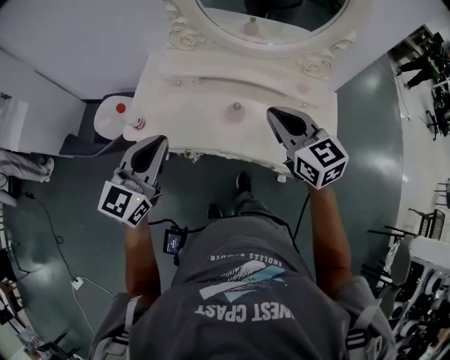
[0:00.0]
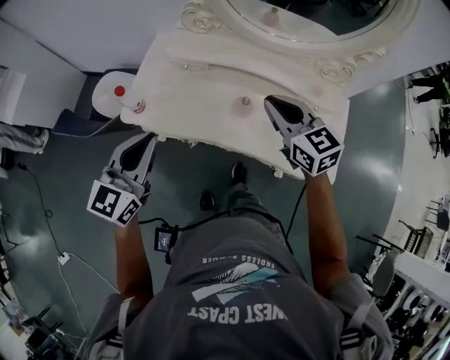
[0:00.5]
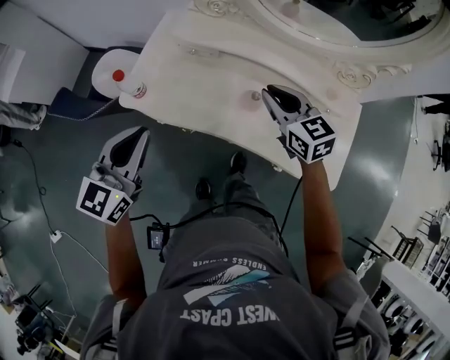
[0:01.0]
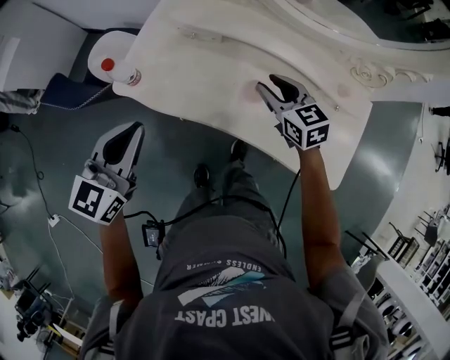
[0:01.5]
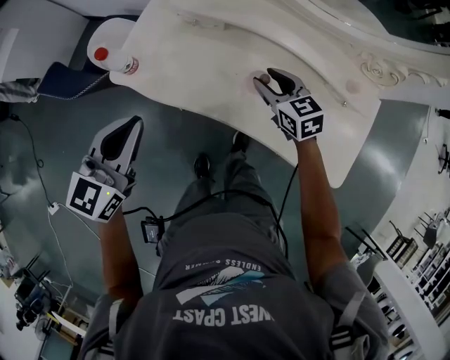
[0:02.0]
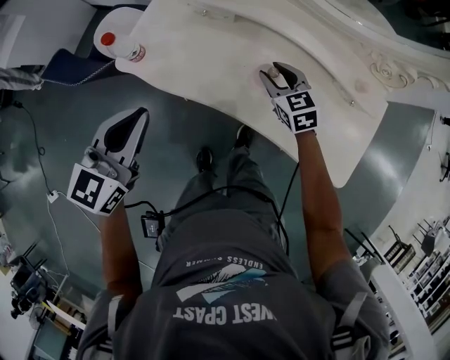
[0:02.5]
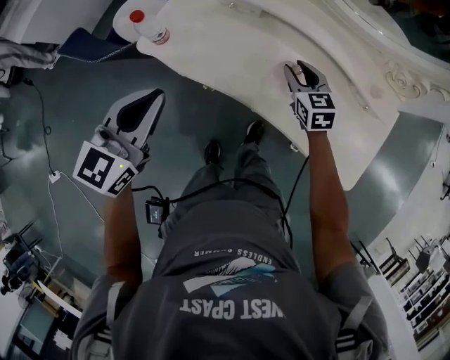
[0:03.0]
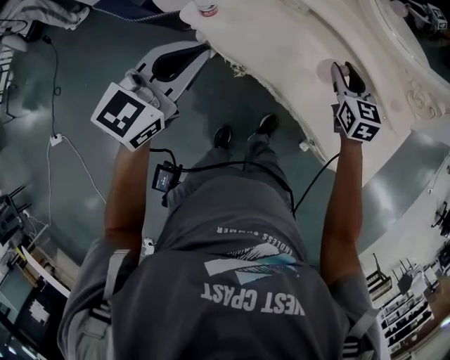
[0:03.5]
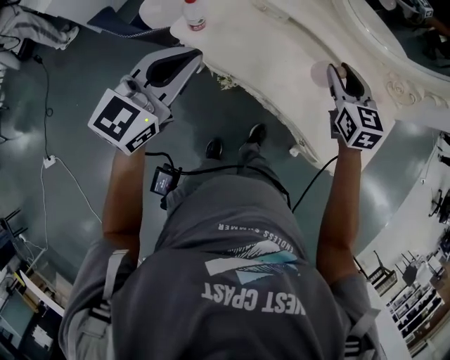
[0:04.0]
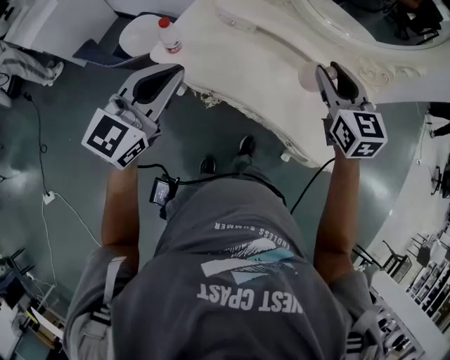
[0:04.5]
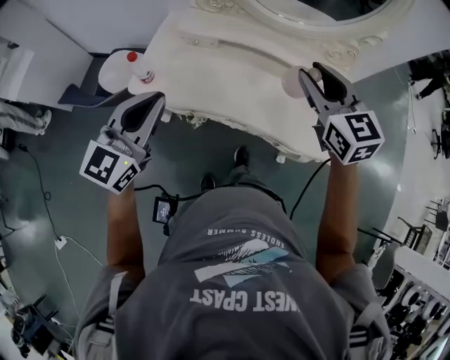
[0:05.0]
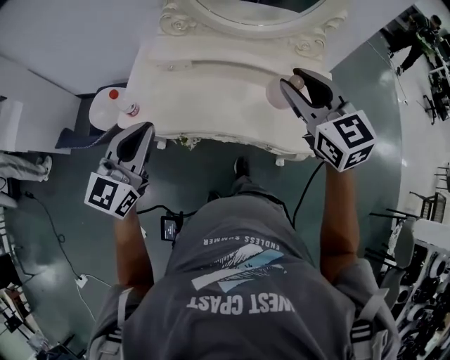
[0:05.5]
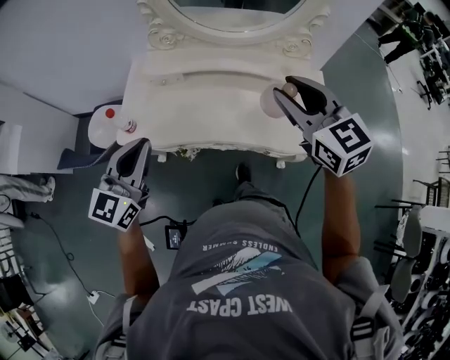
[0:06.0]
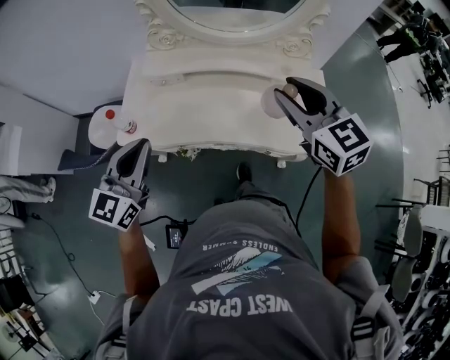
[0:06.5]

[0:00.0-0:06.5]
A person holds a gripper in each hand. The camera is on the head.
0:00.0 to 0:02.0: The right gripper goes approximately 30 cm downward and forward, swivels about 20 degrees, and opens its fingers. The left gripper is displaced downward by roughly 10 cm.
0:02.0 to 0:04.5: The right gripper heads upward, covering approximately 25 cm, and changes its angle by roughly 20 degrees; the left gripper shifts about 10 cm upward.
0:04.5 to 0:06.5: The right gripper travels upward, backward and to the right by some 15 cm.

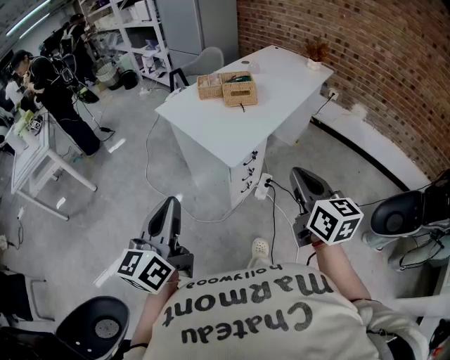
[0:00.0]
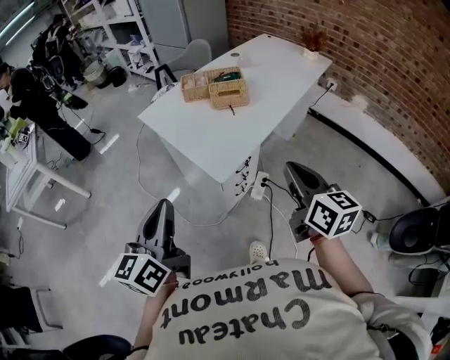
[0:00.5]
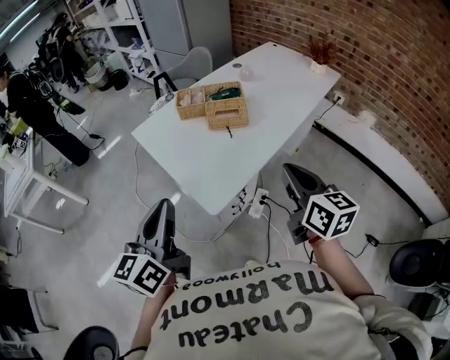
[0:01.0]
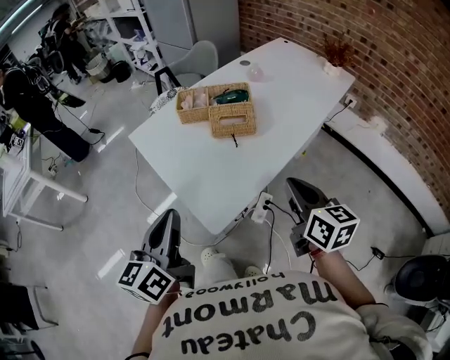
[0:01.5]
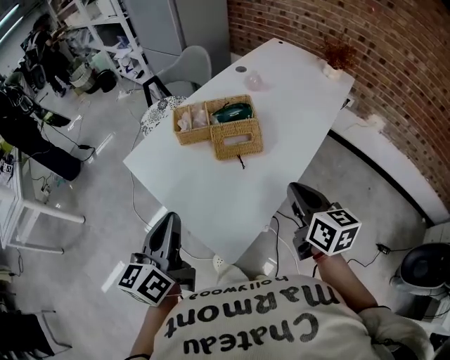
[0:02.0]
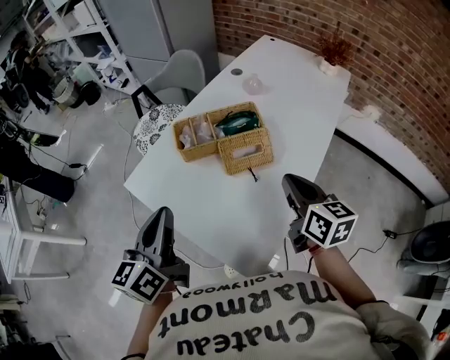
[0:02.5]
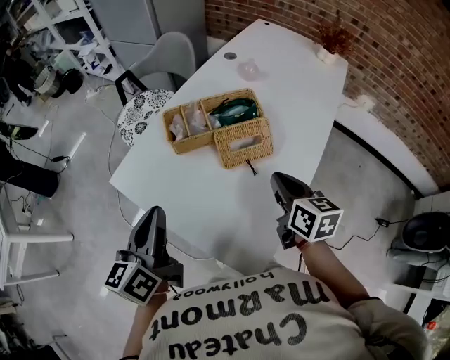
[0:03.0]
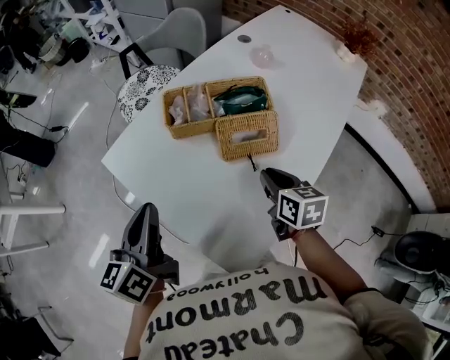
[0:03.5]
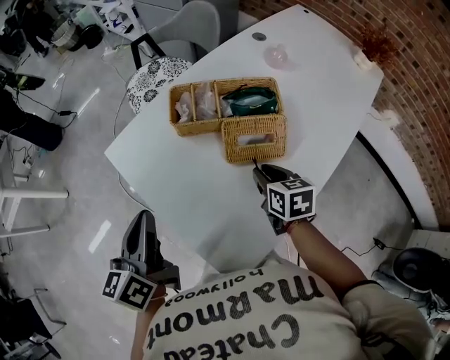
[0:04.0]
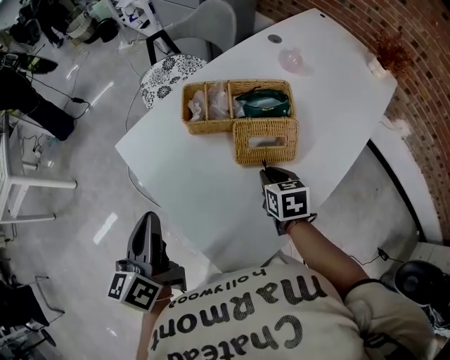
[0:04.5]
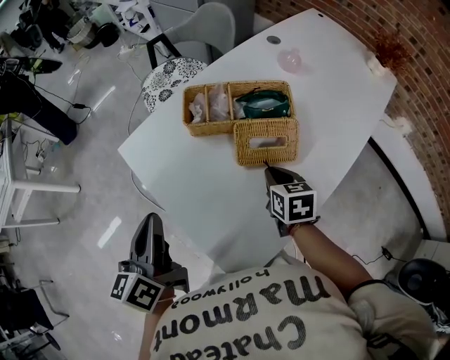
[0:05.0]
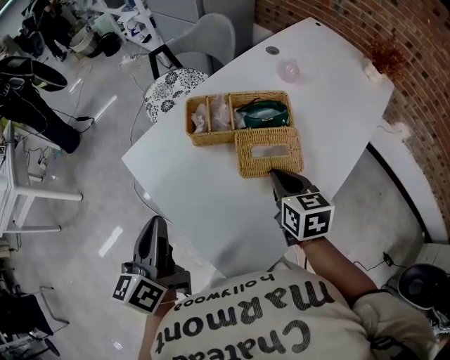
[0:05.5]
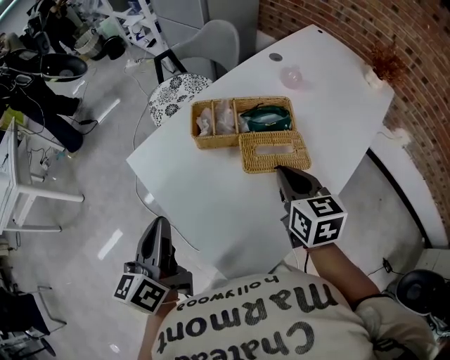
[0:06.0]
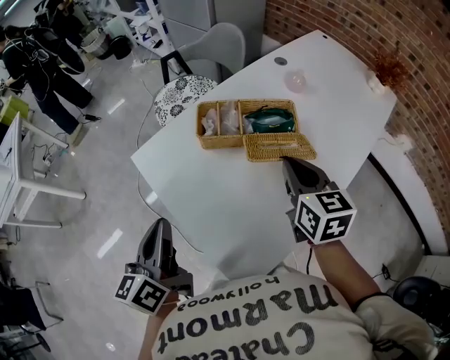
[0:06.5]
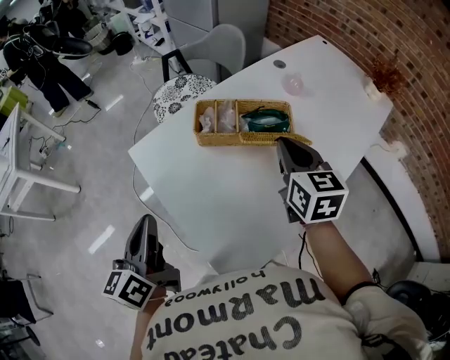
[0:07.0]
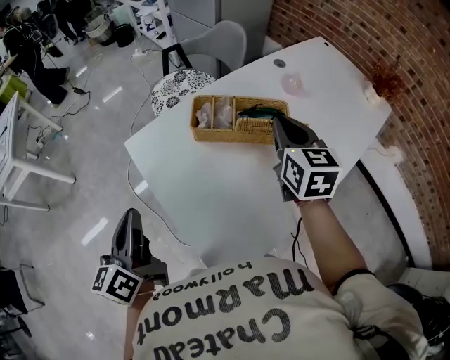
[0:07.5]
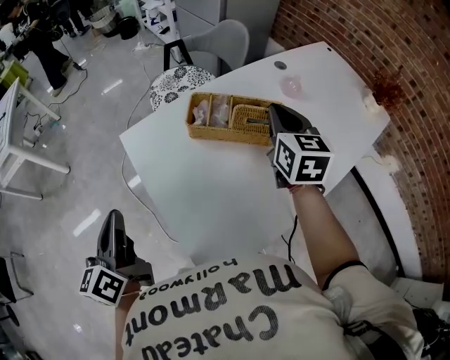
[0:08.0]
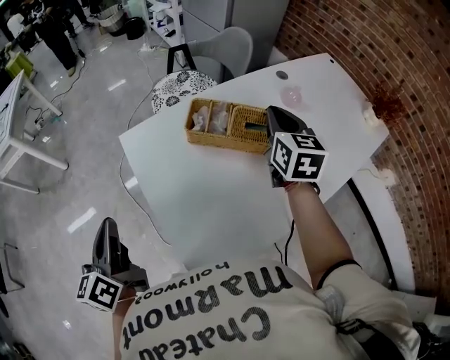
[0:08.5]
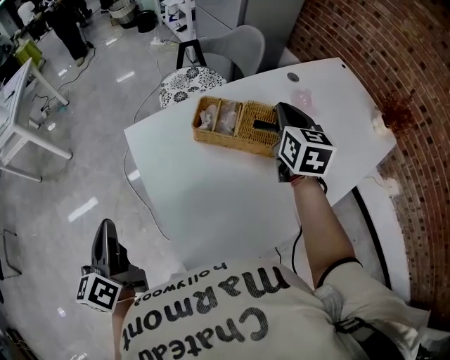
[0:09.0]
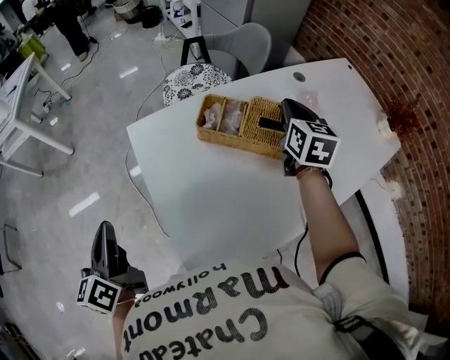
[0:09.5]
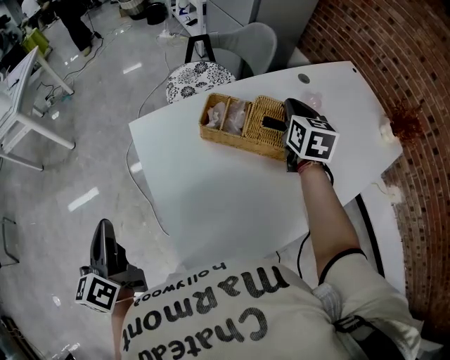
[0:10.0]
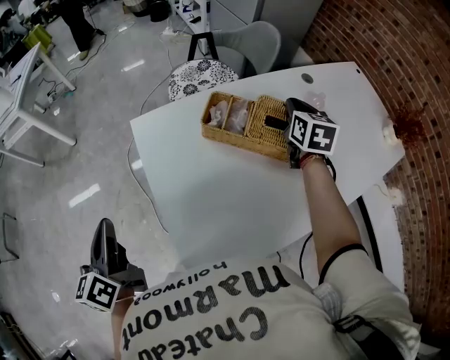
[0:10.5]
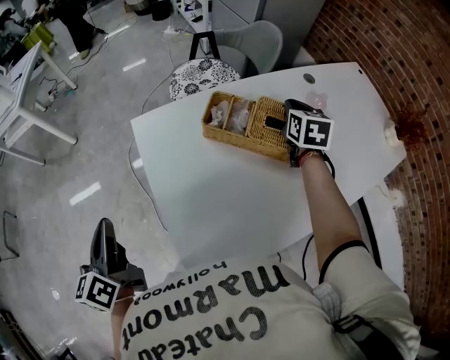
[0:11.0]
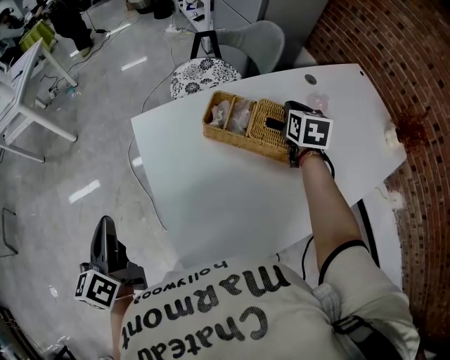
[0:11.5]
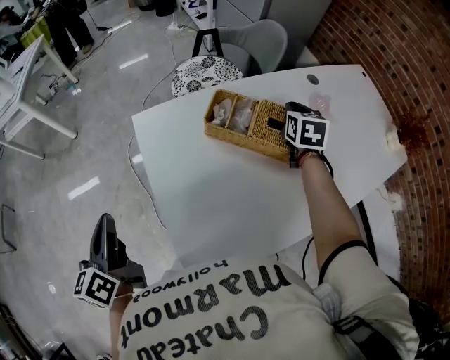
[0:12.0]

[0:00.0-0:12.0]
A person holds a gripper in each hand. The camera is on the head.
0:00.0 to 0:02.0: Both grippers are carried forward, roughly 40 cm.
0:02.0 to 0:04.0: The left gripper goes approximately 15 cm forward, to the left and downward, while the right gripper is displaced downward, forward and to the left by roughly 25 cm, swivels approximately 30 degrees, and opens its fingers.
0:04.0 to 0:06.0: The right gripper is displaced upward by roughly 10 cm.
0:06.0 to 0:08.0: The left gripper heads to the left, covering approximately 5 cm. The right gripper shifts approximately 15 cm forward and upward.
0:08.0 to 0:10.0: The left gripper changes place by roughly 5 cm. Meanwhile the right gripper heads forward, covering about 10 cm.
0:10.0 to 0:12.0: The right gripper shifts roughly 5 cm downward.

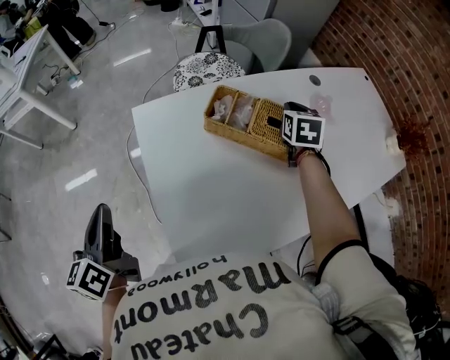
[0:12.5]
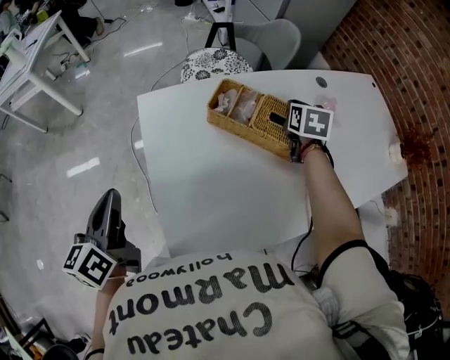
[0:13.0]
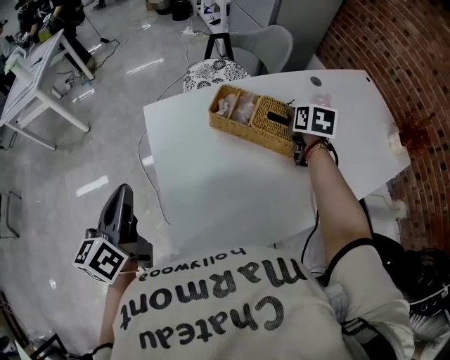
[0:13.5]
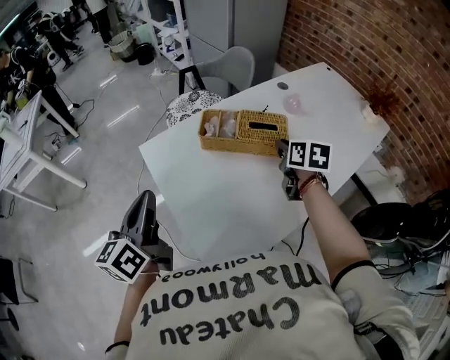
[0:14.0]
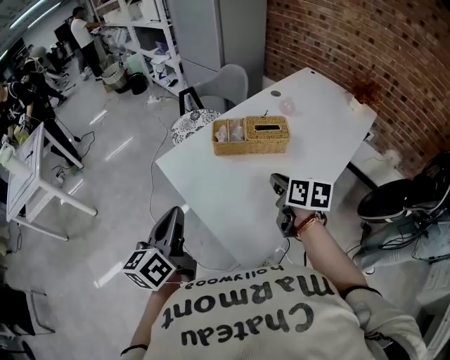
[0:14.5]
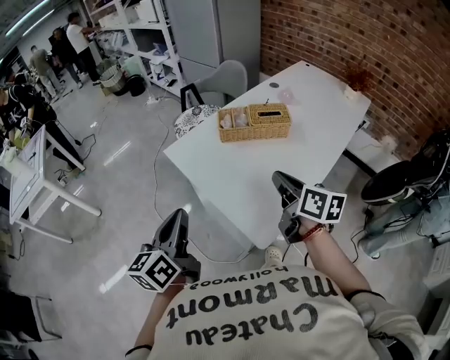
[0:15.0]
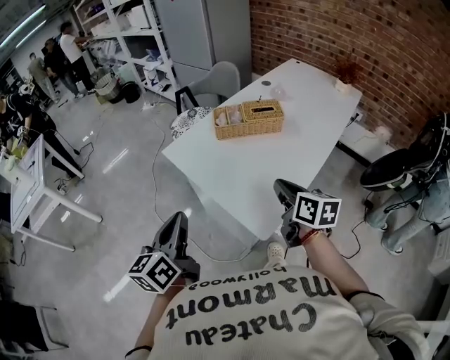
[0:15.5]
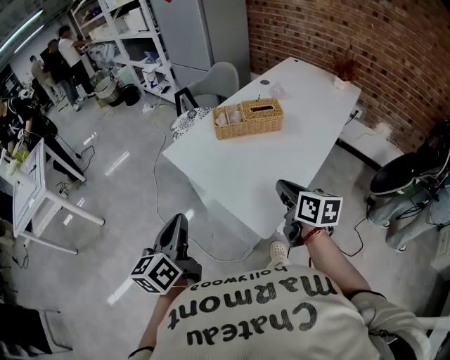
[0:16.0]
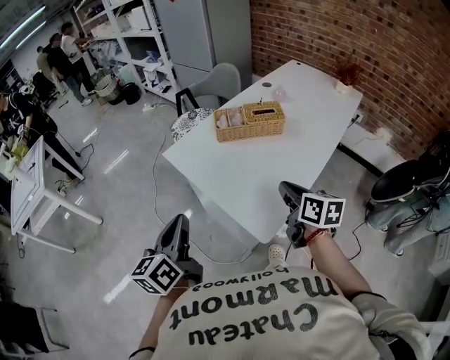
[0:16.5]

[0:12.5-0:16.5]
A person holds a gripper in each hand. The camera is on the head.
0:12.5 to 0:14.5: The right gripper shifts approximately 30 cm backward, and turns by approximately 40 degrees, while the left gripper is displaced upward and to the right by approximately 10 cm, and rotates about 40 degrees.
0:14.5 to 0:16.5: Both grippers move backward, approximately 10 cm.

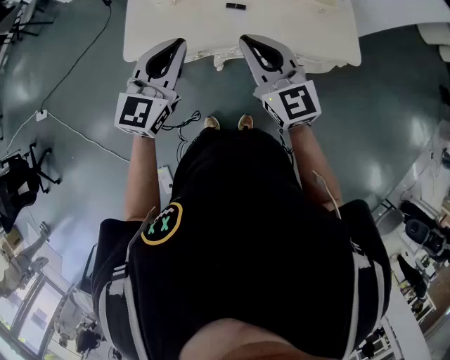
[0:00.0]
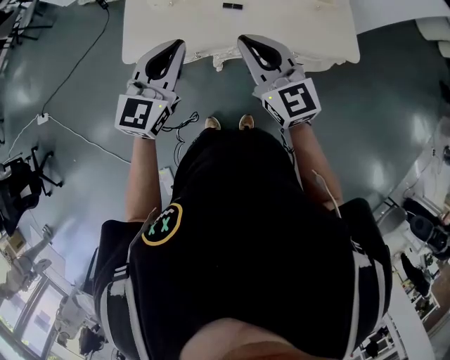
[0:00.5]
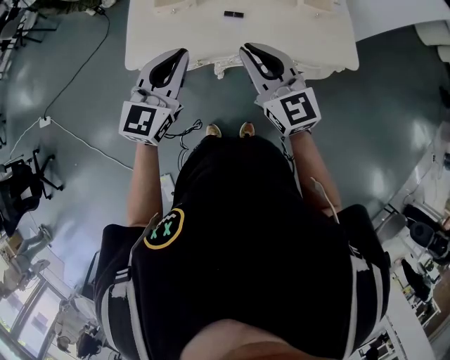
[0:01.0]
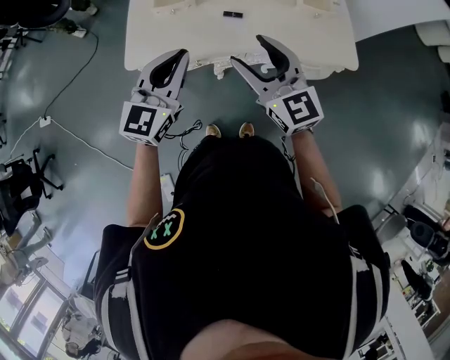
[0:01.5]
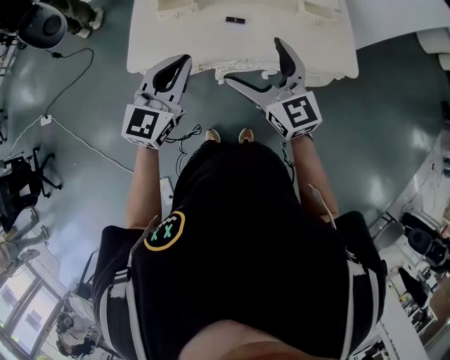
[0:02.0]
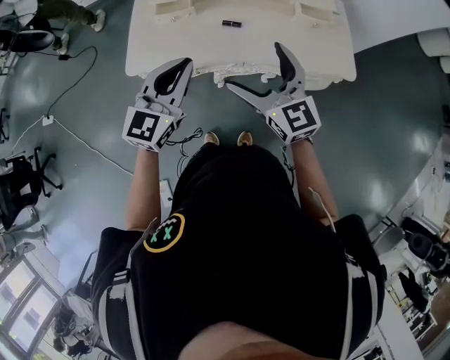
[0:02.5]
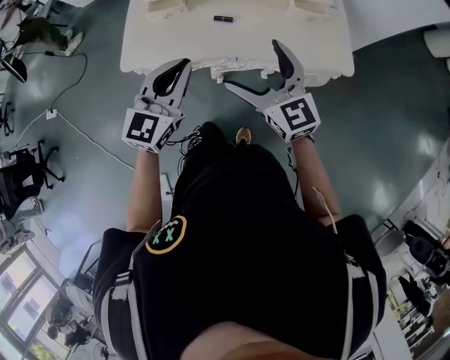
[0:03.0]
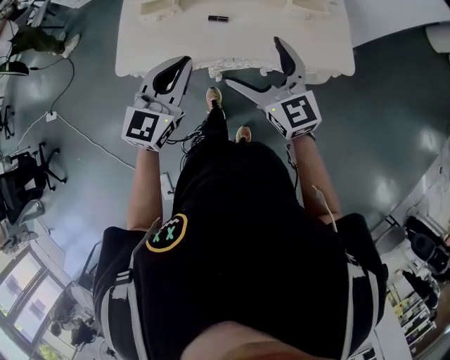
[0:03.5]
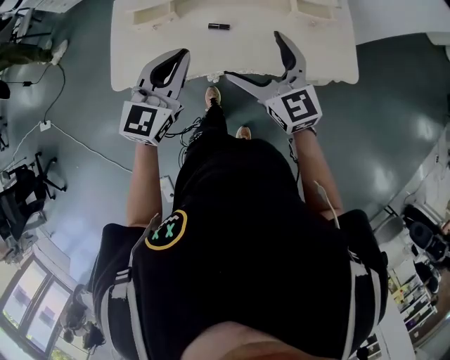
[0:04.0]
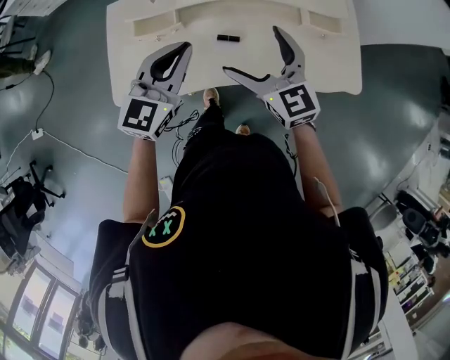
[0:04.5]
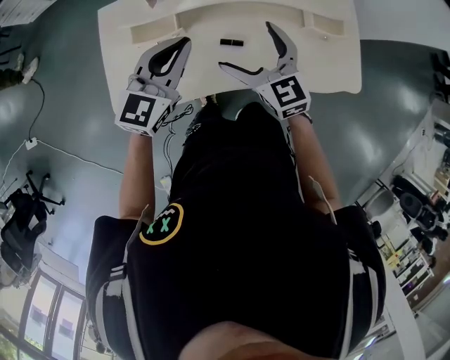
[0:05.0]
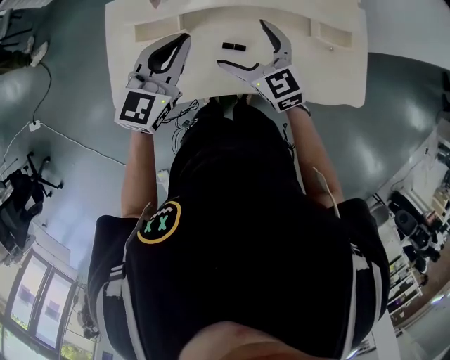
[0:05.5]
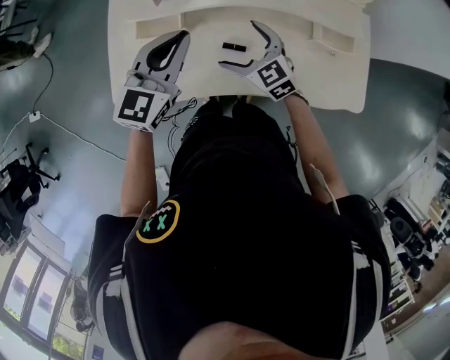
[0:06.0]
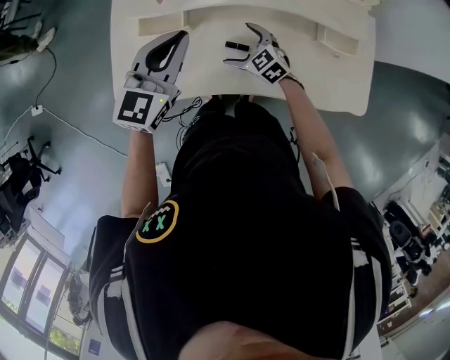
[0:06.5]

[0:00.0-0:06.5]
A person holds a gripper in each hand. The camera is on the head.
0:00.0 to 0:02.0: The right gripper opens.
0:02.0 to 0:04.5: The two grippers go roughly 20 cm forward.
0:04.5 to 0:06.5: The right gripper moves downward, approximately 25 cm, and turns by approximately 30 degrees, while the left gripper travels forward by roughly 10 cm.
